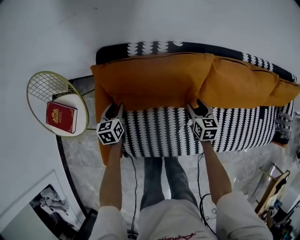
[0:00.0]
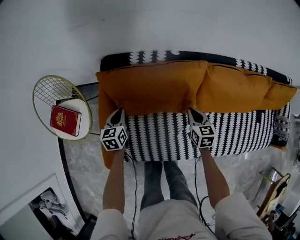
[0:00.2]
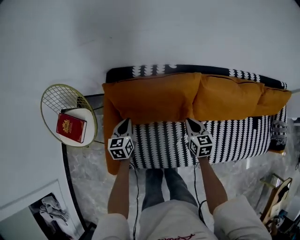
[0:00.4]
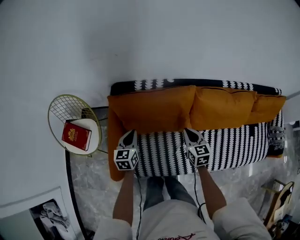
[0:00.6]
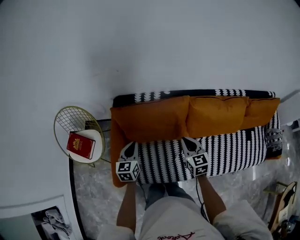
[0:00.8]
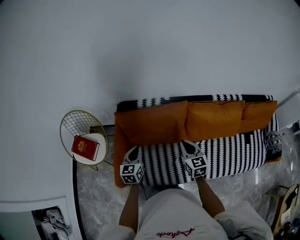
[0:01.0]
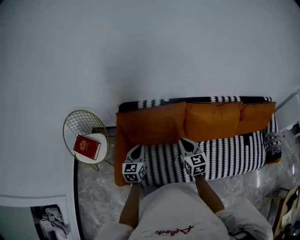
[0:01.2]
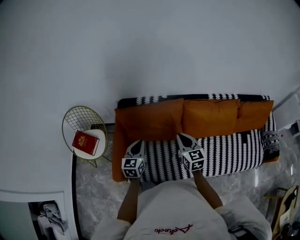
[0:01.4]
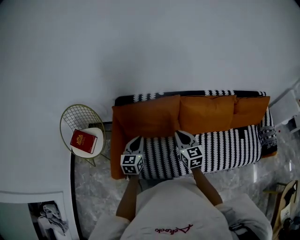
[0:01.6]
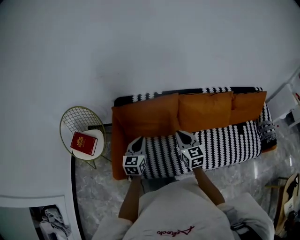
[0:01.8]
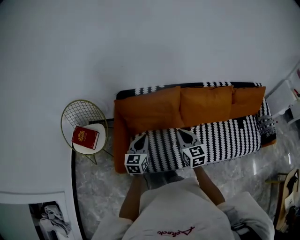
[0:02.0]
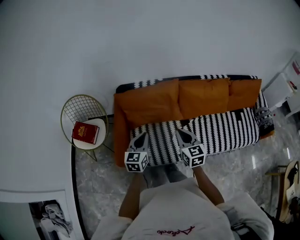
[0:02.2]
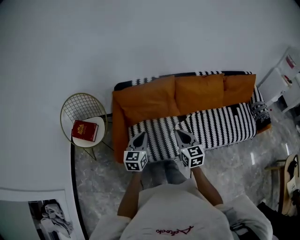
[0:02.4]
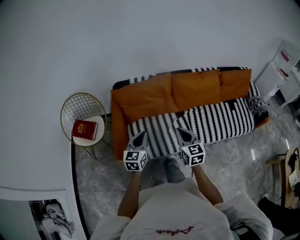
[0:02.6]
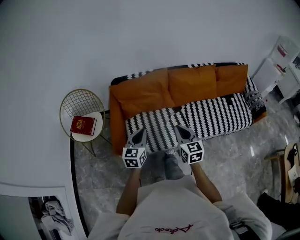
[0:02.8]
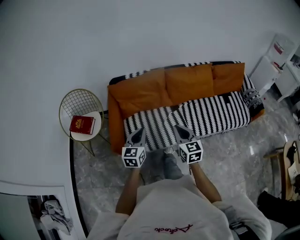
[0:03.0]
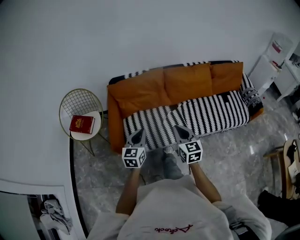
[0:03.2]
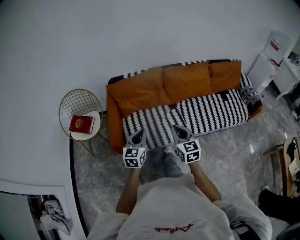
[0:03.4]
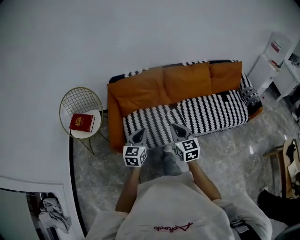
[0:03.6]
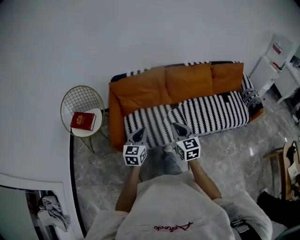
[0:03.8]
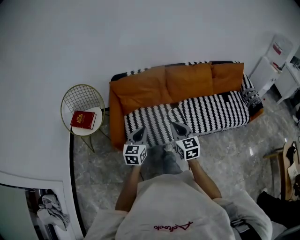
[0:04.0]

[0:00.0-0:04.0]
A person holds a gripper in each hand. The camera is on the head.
0:00.0 to 0:01.4: The right gripper is displaced upward by approximately 30 cm, turns by some 30 degrees, and closes up, while the left gripper shifts roughly 35 cm upward, backward and to the right, swivels approximately 20 degrees, and closes.
0:01.4 to 0:02.6: Both grippers move backward, some 25 cm.
0:02.6 to 0:04.0: Both grippers move backward, roughly 10 cm.

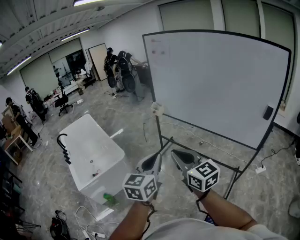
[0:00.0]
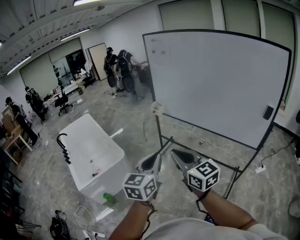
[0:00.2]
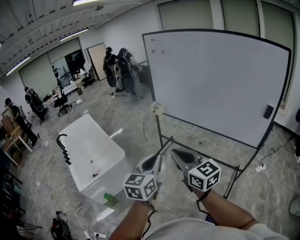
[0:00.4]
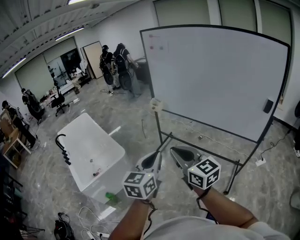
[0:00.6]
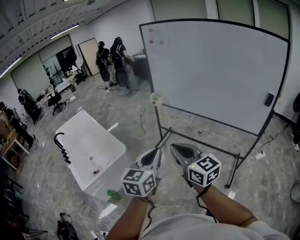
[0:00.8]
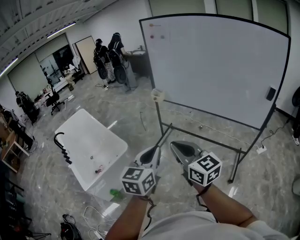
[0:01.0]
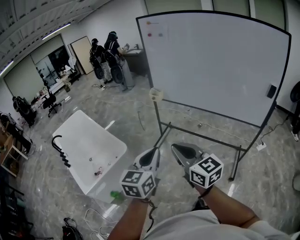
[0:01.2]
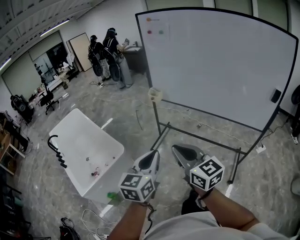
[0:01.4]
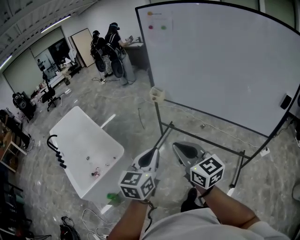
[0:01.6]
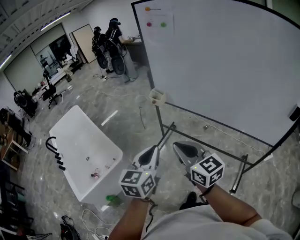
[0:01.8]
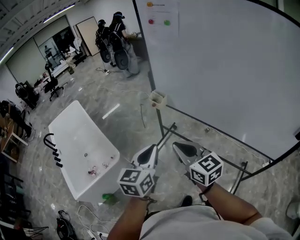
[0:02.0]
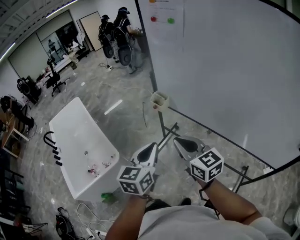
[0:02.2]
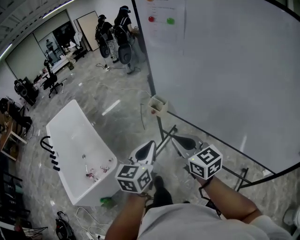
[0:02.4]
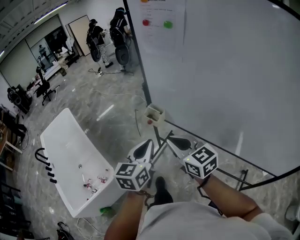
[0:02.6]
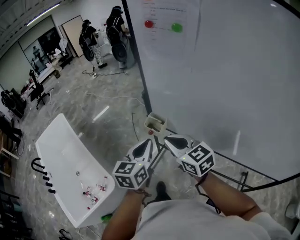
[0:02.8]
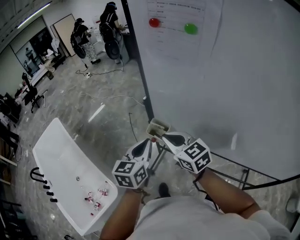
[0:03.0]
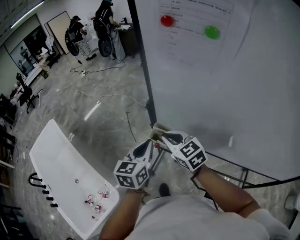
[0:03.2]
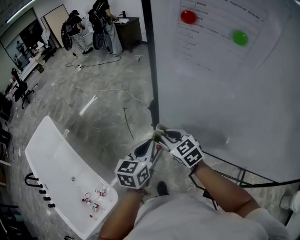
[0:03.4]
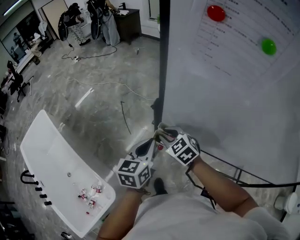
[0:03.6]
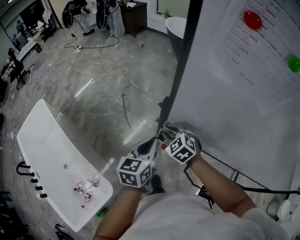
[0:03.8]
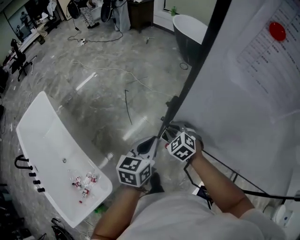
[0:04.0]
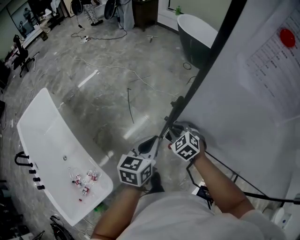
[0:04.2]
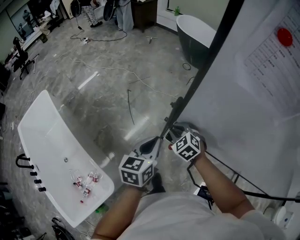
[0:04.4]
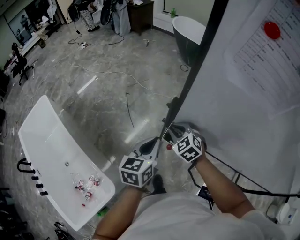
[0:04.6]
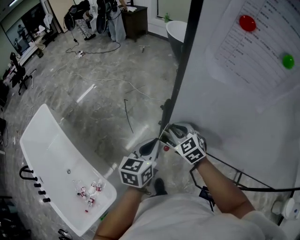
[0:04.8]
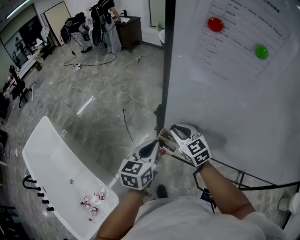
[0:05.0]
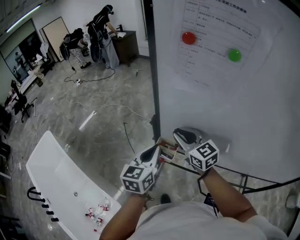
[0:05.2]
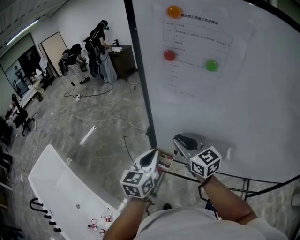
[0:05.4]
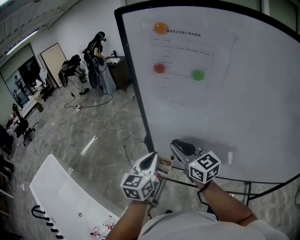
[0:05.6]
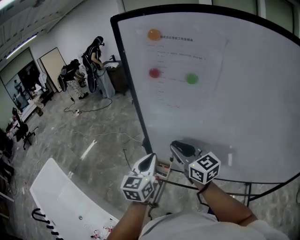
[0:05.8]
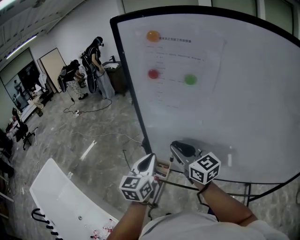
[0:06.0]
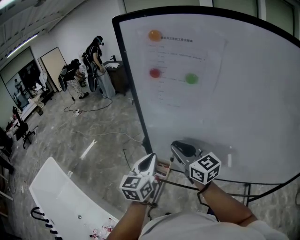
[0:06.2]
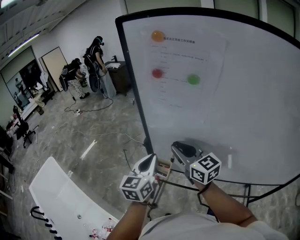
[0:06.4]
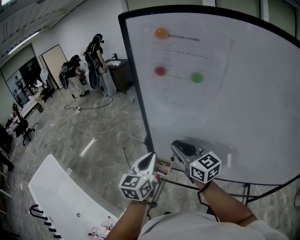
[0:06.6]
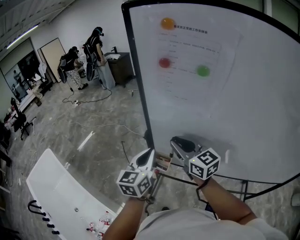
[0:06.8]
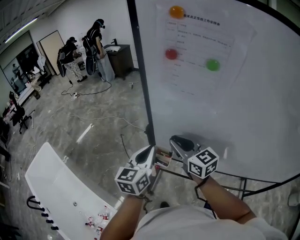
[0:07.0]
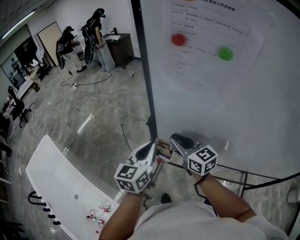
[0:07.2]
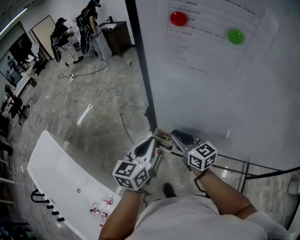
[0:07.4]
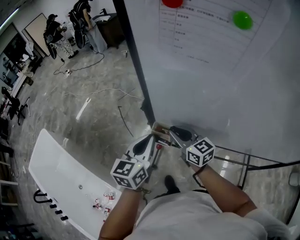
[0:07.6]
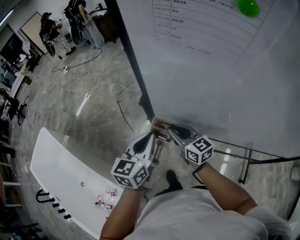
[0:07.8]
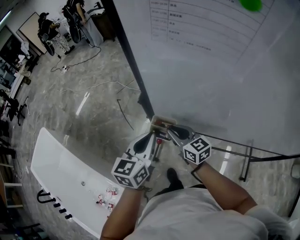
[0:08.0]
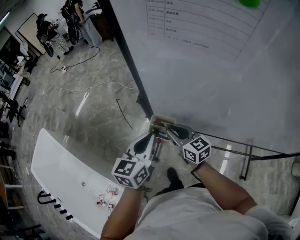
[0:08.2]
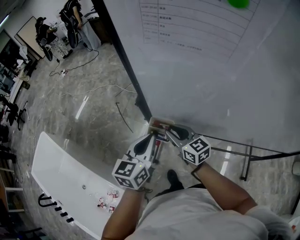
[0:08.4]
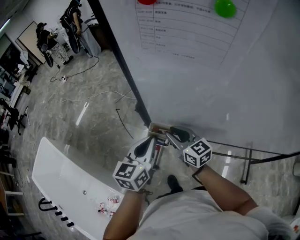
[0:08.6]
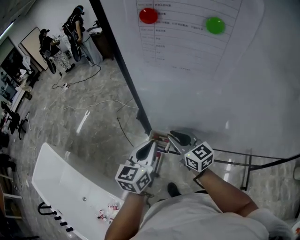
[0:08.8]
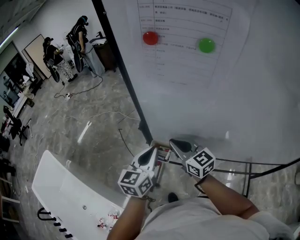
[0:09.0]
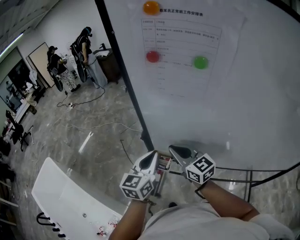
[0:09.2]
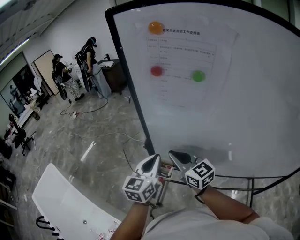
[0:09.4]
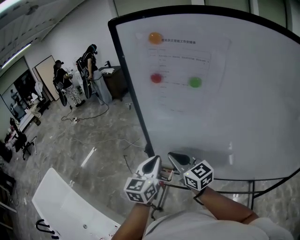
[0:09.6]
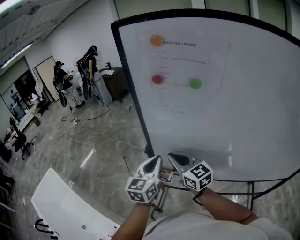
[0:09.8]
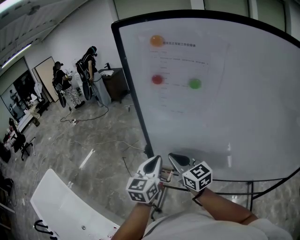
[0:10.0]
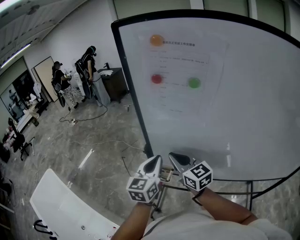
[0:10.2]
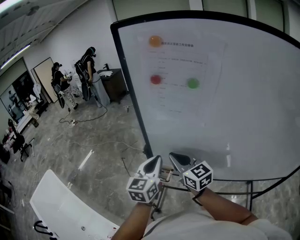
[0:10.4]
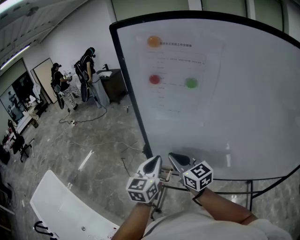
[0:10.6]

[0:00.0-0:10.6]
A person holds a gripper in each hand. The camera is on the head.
0:00.0 to 0:01.6: The two grippers go some 20 cm forward and to the left.
0:01.6 to 0:03.0: The pair of grippers is taken forward, about 60 cm.
0:03.0 to 0:04.6: The left gripper moves forward, downward and to the left, about 20 cm. Meanwhile the right gripper is displaced downward, forward and to the left by about 25 cm, and rotates approximately 40 degrees.
0:04.6 to 0:06.0: The right gripper heads upward and to the right, covering approximately 30 cm, and points its fingers approximately 40 degrees further upward; the left gripper shifts some 20 cm upward and to the right, and changes its angle by about 20 degrees.
0:06.0 to 0:07.6: The left gripper heads downward, covering some 10 cm; the right gripper moves downward, approximately 20 cm.
0:07.6 to 0:09.0: The right gripper travels upward by approximately 5 cm.
0:09.0 to 0:10.6: The two grippers go some 10 cm upward.

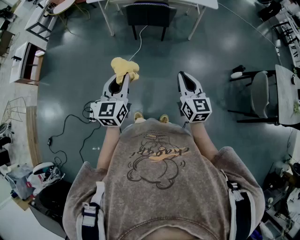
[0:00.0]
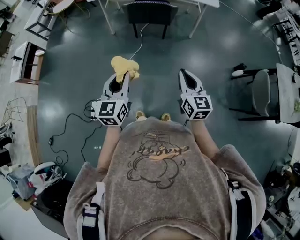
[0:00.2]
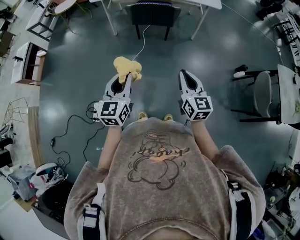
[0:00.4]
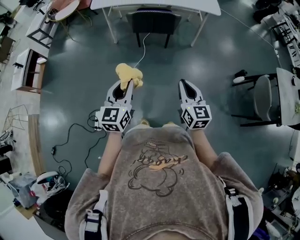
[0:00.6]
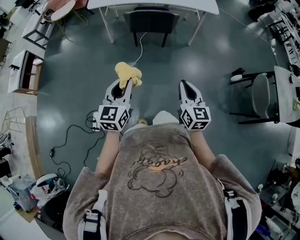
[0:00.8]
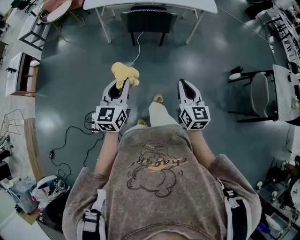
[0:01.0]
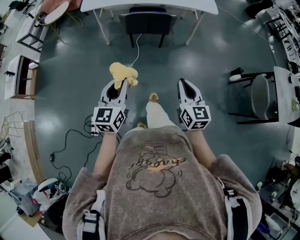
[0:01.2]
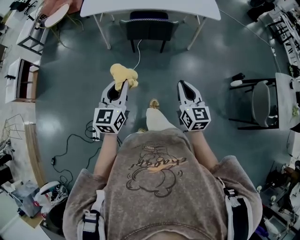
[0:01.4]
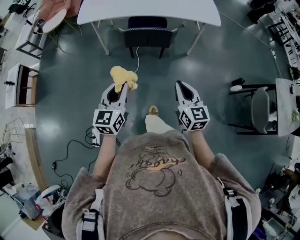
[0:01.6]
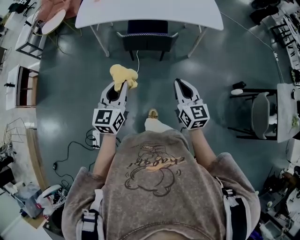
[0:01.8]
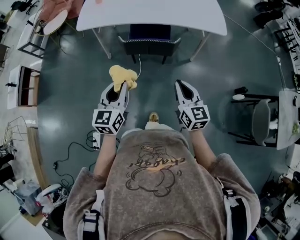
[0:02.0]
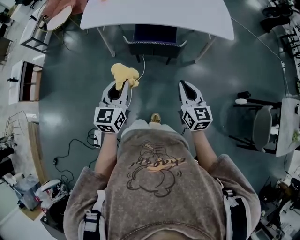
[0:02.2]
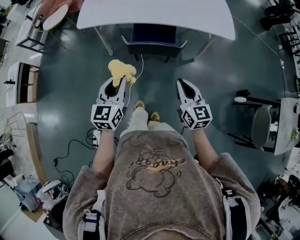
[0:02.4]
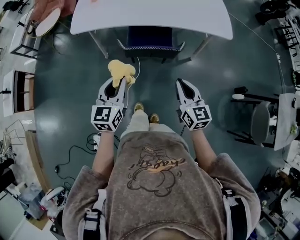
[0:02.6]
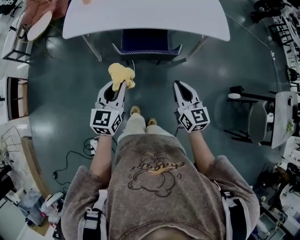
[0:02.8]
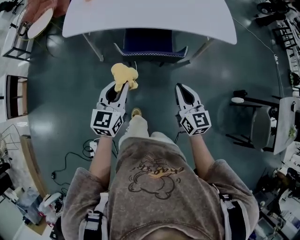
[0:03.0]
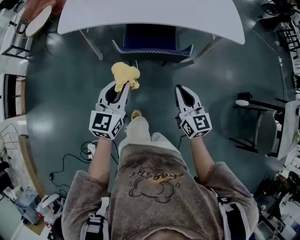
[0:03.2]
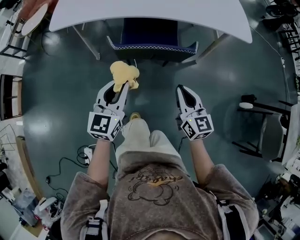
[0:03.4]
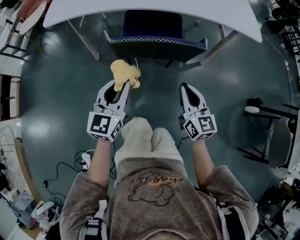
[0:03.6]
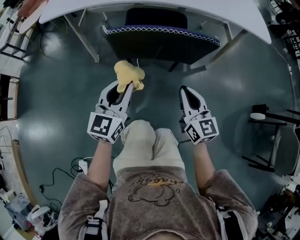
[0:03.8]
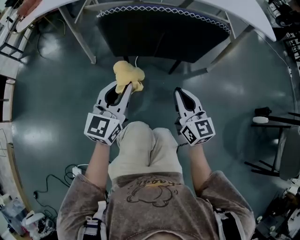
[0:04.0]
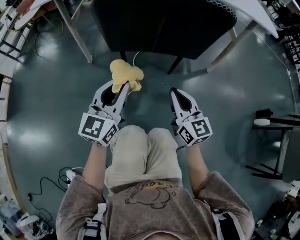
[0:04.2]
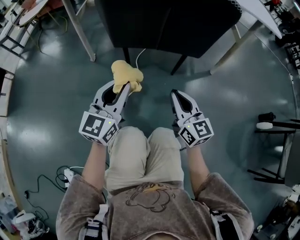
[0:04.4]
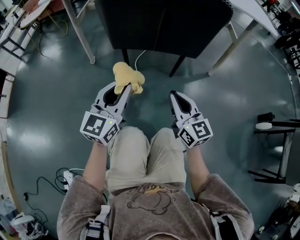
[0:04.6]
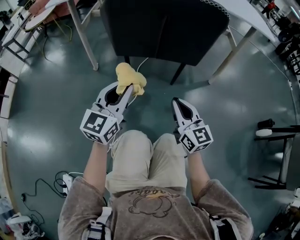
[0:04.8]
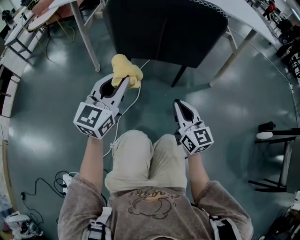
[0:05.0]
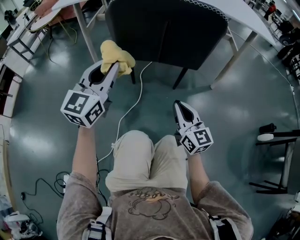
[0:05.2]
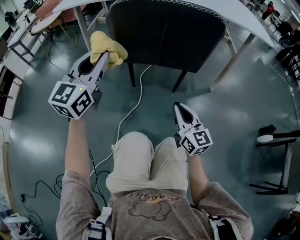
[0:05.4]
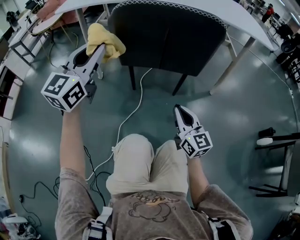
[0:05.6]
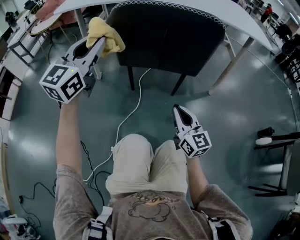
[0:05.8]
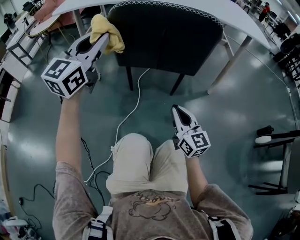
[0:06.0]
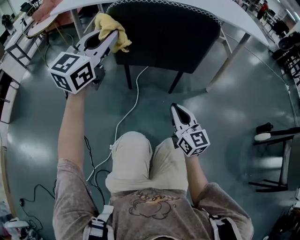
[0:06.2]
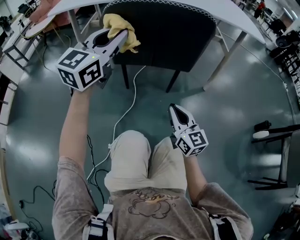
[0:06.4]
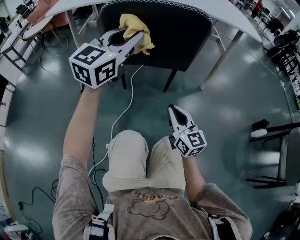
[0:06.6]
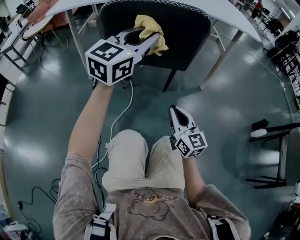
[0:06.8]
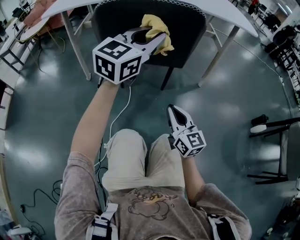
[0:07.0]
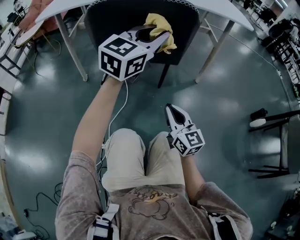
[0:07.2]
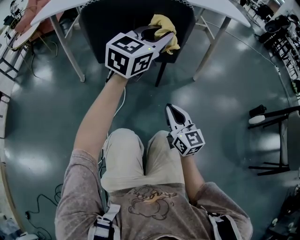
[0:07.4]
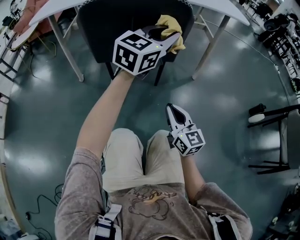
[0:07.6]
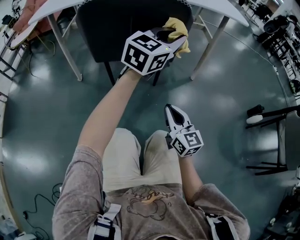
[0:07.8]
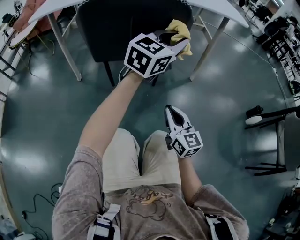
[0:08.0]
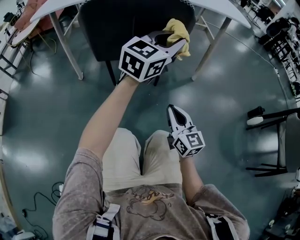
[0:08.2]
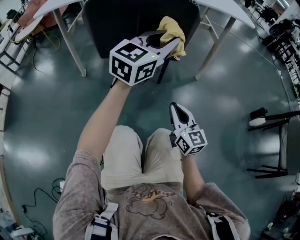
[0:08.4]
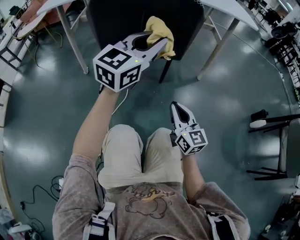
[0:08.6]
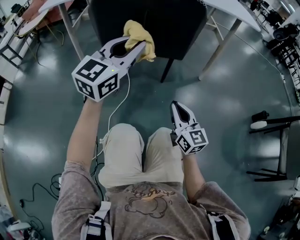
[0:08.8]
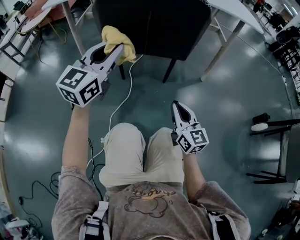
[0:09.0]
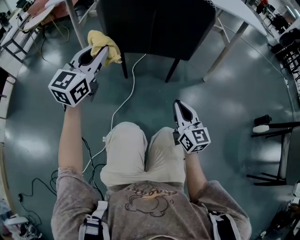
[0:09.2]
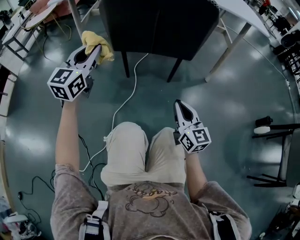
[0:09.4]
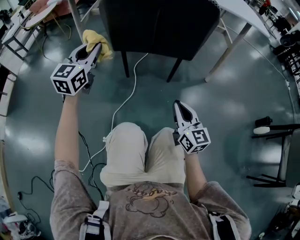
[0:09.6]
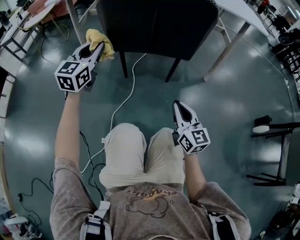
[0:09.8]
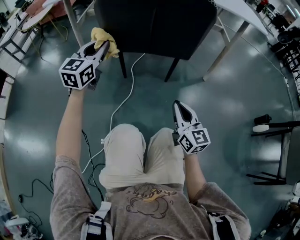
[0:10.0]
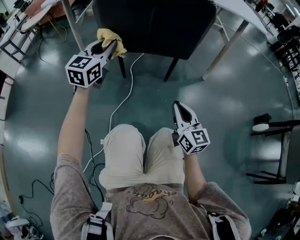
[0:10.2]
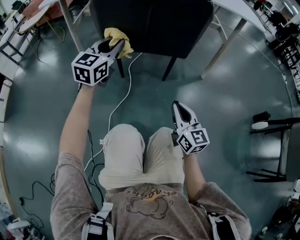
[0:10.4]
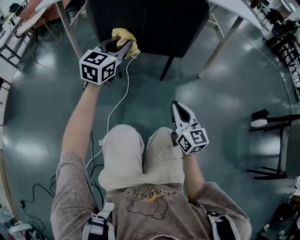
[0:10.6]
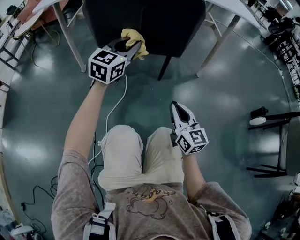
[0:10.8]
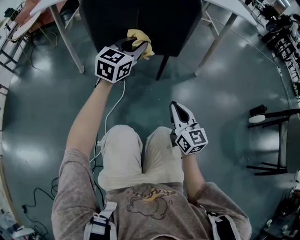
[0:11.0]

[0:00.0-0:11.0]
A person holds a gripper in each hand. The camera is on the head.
0:00.0 to 0:01.6: Both grippers travel together forward, roughly 20 cm.
0:01.6 to 0:03.2: Both grippers travel together forward and downward, some 25 cm.
0:03.2 to 0:04.8: Both grippers move downward, about 30 cm.
0:04.8 to 0:06.2: The left gripper heads upward and forward, covering roughly 20 cm.
0:06.2 to 0:07.8: The left gripper heads to the right, covering about 30 cm, and rotates some 20 degrees. Meanwhile the right gripper is displaced to the right by roughly 5 cm.
0:07.8 to 0:09.4: The left gripper moves to the left, approximately 35 cm, and changes its angle by approximately 30 degrees.
0:09.4 to 0:11.0: The left gripper moves to the right, roughly 20 cm.
